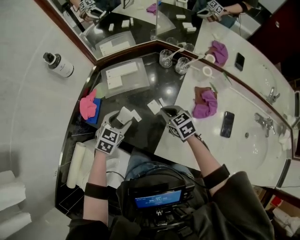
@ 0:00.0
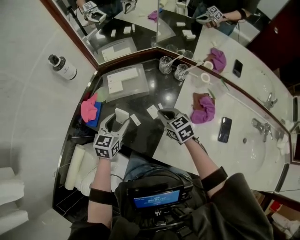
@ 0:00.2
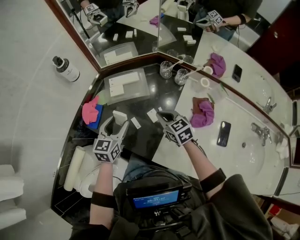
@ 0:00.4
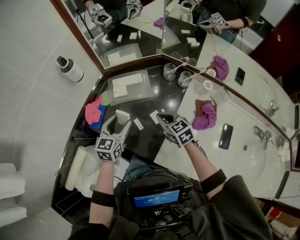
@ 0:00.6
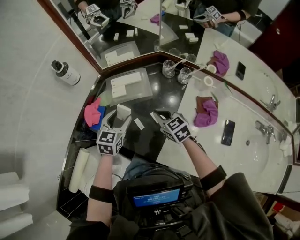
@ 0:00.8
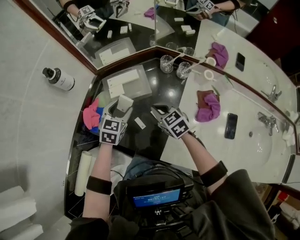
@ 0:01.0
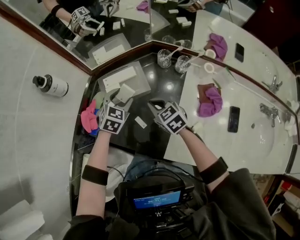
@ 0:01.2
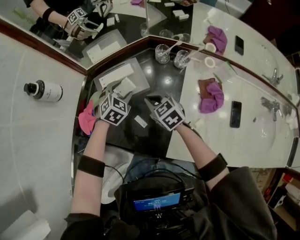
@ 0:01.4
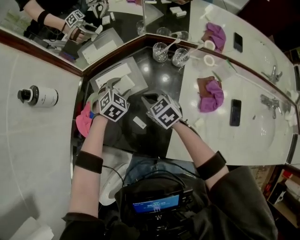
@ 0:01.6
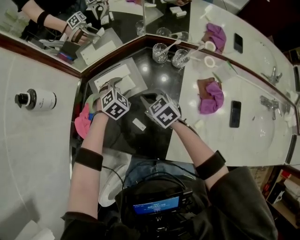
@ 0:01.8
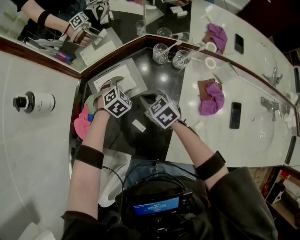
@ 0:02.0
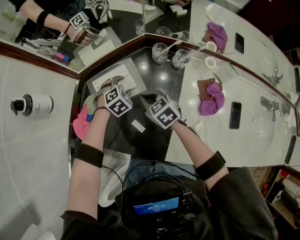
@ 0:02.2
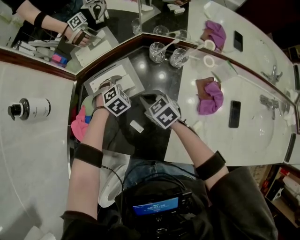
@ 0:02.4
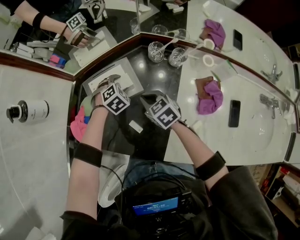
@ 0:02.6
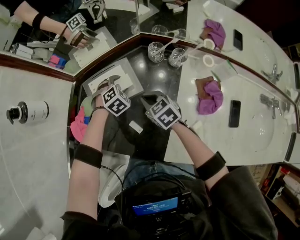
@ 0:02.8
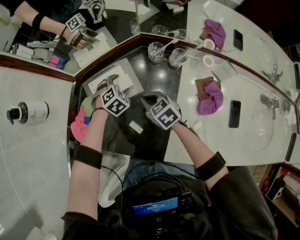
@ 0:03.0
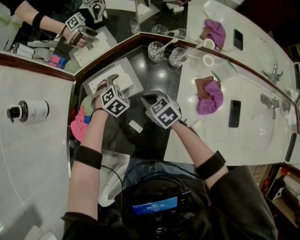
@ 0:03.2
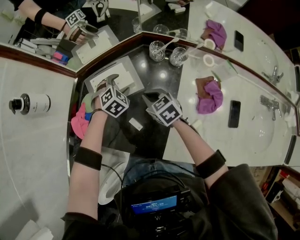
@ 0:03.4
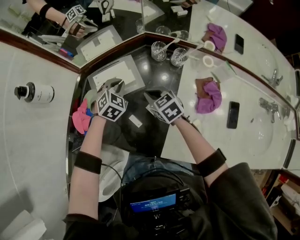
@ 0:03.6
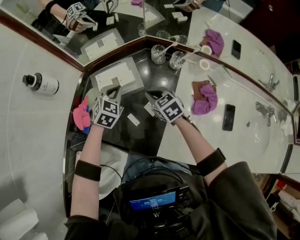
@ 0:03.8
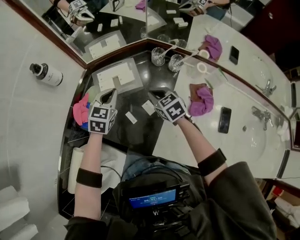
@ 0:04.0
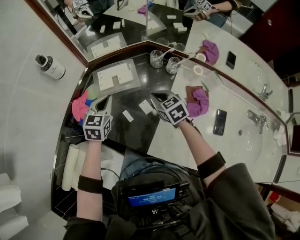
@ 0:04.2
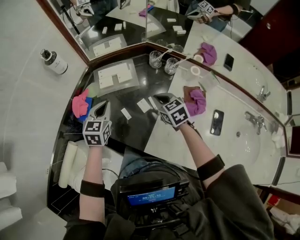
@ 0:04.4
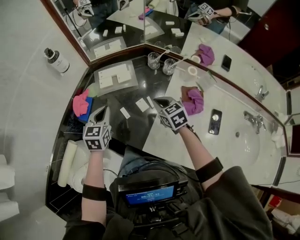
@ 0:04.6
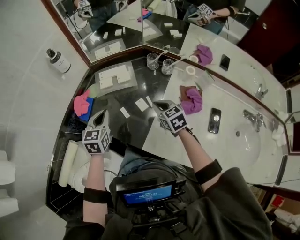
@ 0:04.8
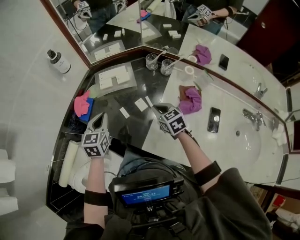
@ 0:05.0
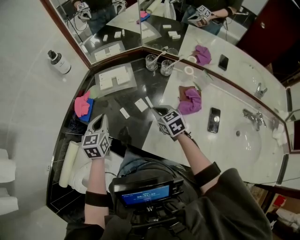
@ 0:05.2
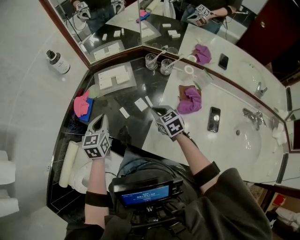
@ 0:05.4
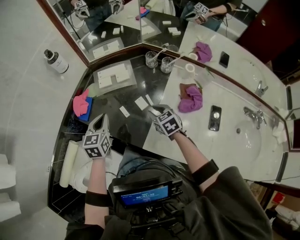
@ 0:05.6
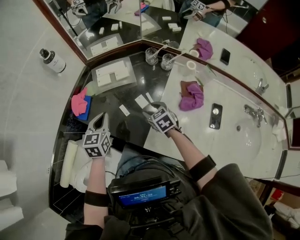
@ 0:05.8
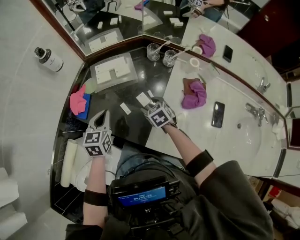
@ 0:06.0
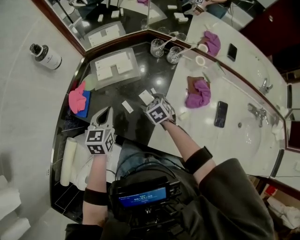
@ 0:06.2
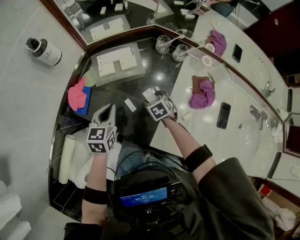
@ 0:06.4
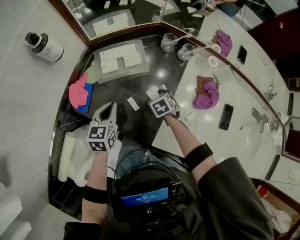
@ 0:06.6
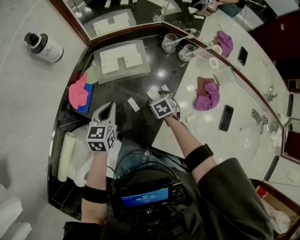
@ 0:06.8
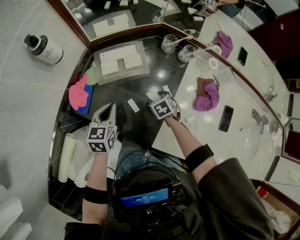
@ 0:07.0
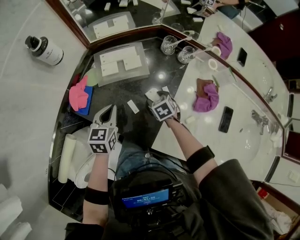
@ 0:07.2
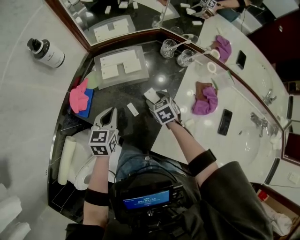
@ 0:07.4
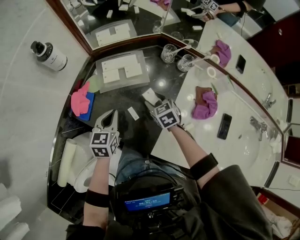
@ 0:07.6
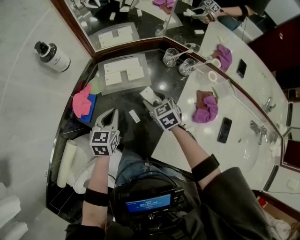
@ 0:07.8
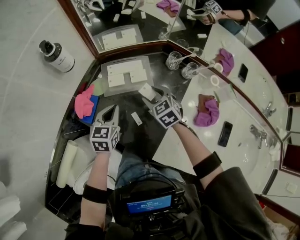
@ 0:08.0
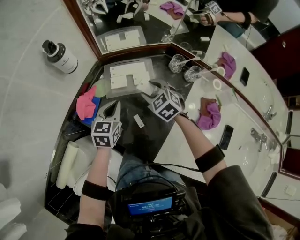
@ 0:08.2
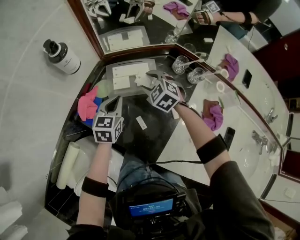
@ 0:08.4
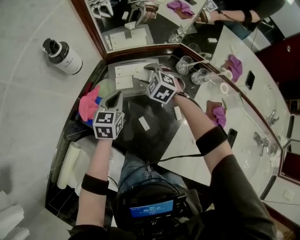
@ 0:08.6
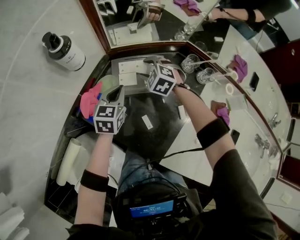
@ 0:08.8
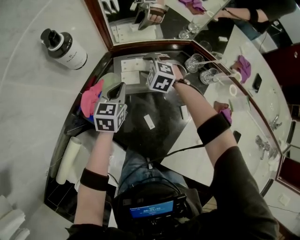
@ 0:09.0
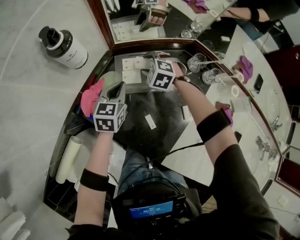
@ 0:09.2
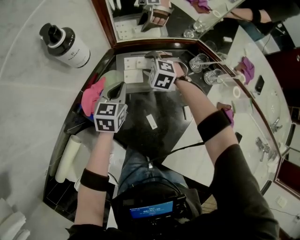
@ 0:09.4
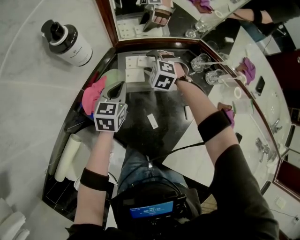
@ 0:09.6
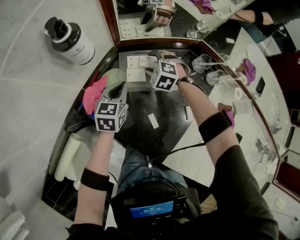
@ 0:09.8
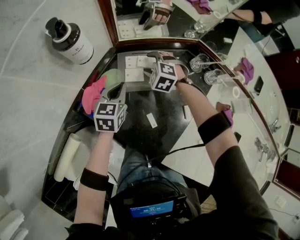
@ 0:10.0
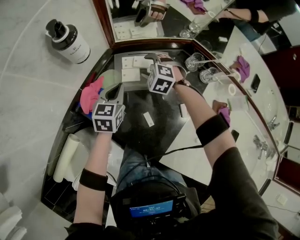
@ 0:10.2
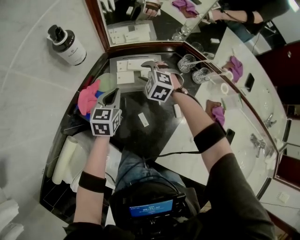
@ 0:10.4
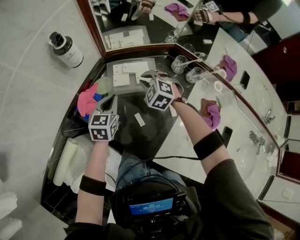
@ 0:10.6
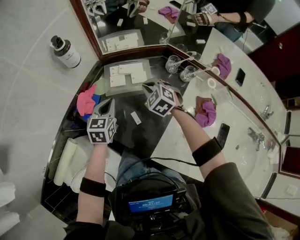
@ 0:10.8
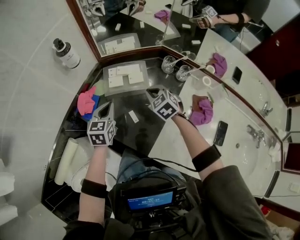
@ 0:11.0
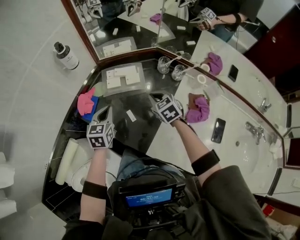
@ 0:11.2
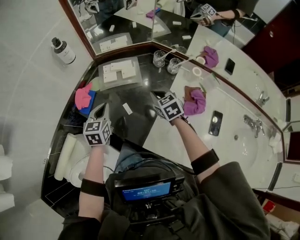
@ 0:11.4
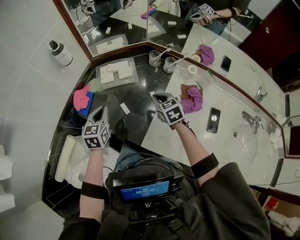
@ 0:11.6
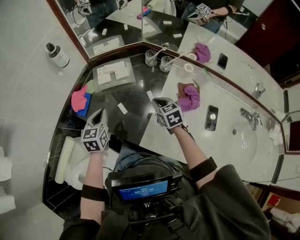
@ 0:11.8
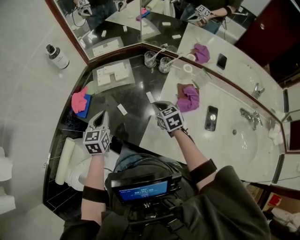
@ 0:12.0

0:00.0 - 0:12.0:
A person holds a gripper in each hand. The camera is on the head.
0:00.0 - 0:01.6: The right gripper travels forward and to the left by some 15 cm, while the left gripper is displaced forward by roughly 20 cm, and rotates roughly 30 degrees.
0:01.6 - 0:03.0: The left gripper is displaced downward by approximately 5 cm.
0:03.0 - 0:04.4: The left gripper is displaced upward, backward and to the left by roughly 25 cm, rotates around the line of its fingers by approximately 50 degrees, counterclockwise from behind, and closes its fingers. The right gripper travels backward, upward and to the right by approximately 15 cm.
0:04.4 - 0:06.0: The right gripper is displaced downward by approximately 10 cm, and opens, while the left gripper travels backward by some 5 cm.
0:06.0 - 0:07.6: The right gripper moves forward, about 5 cm, and travels downward and back again, about 10 cm each way; the left gripper goes approximately 5 cm downward.
0:07.6 - 0:09.0: The left gripper moves forward, approximately 15 cm. The right gripper heads forward and to the left, covering about 25 cm, and twists some 50 degrees counterclockwise, seen from behind.
0:09.0 - 0:10.4: The right gripper shifts by some 5 cm.
0:10.4 - 0:12.0: The right gripper moves backward and to the right, roughly 35 cm, rolls clockwise, seen from behind, by some 60 degrees, and closes its fingers, while the left gripper heads backward, covering roughly 20 cm.

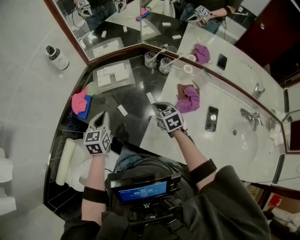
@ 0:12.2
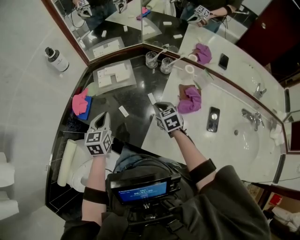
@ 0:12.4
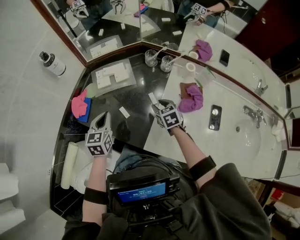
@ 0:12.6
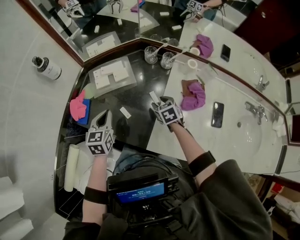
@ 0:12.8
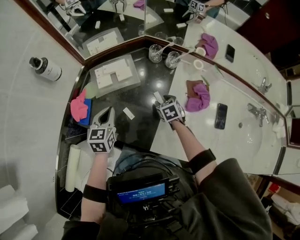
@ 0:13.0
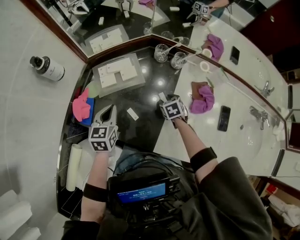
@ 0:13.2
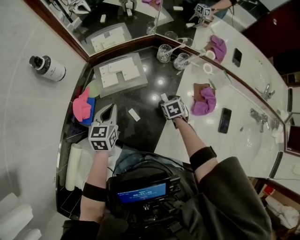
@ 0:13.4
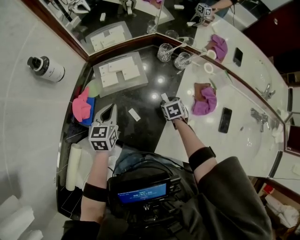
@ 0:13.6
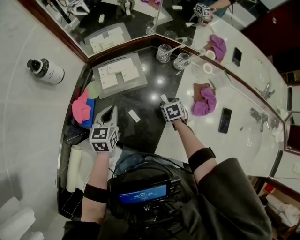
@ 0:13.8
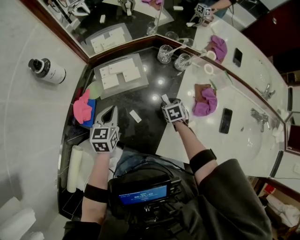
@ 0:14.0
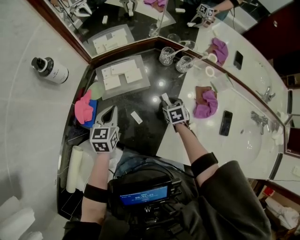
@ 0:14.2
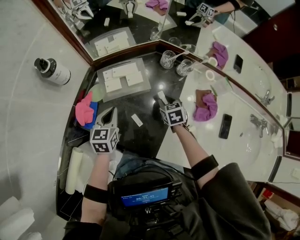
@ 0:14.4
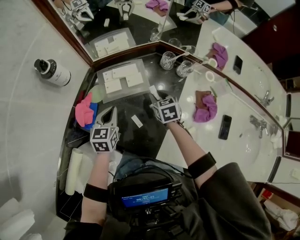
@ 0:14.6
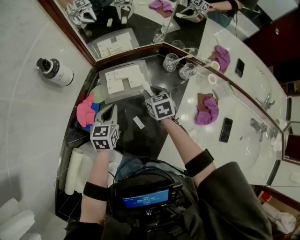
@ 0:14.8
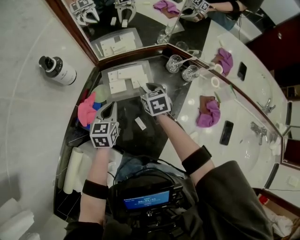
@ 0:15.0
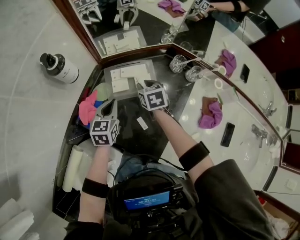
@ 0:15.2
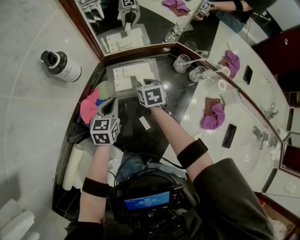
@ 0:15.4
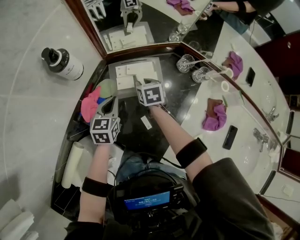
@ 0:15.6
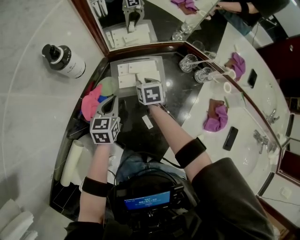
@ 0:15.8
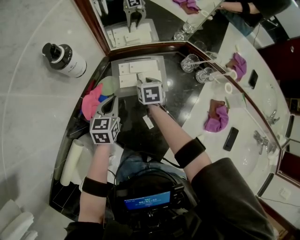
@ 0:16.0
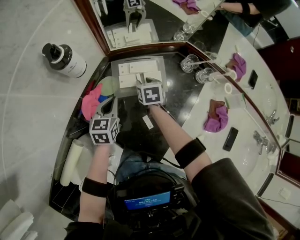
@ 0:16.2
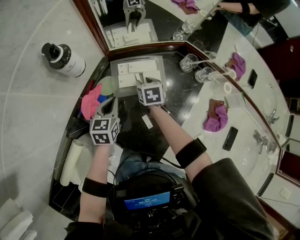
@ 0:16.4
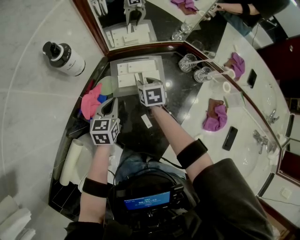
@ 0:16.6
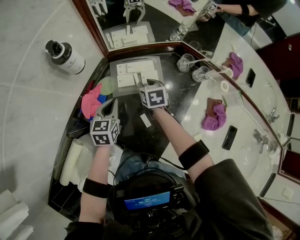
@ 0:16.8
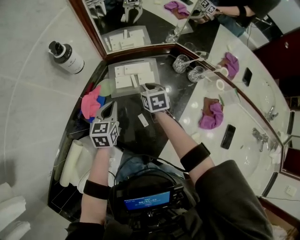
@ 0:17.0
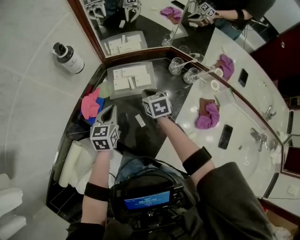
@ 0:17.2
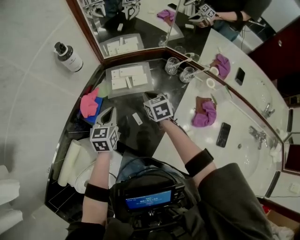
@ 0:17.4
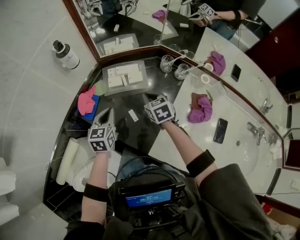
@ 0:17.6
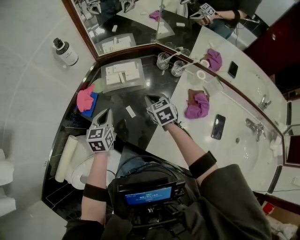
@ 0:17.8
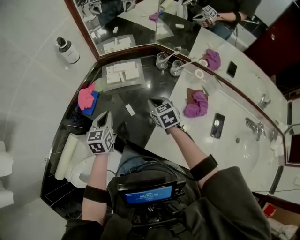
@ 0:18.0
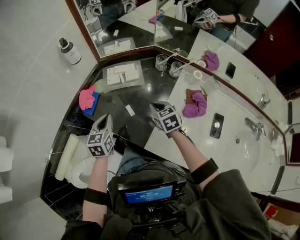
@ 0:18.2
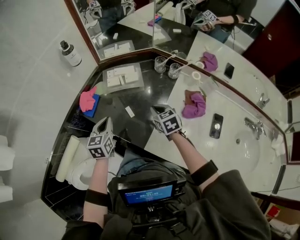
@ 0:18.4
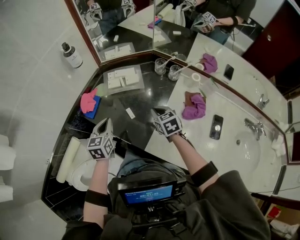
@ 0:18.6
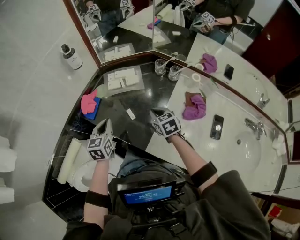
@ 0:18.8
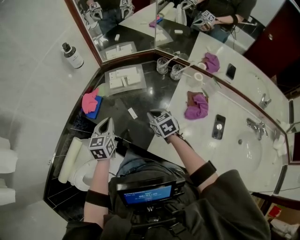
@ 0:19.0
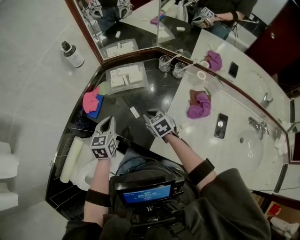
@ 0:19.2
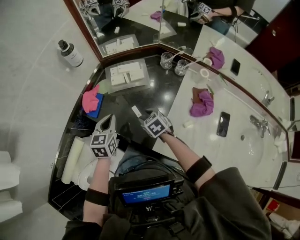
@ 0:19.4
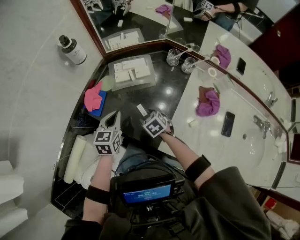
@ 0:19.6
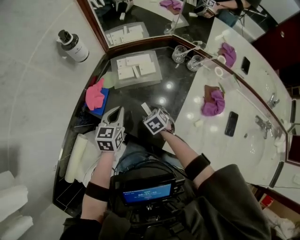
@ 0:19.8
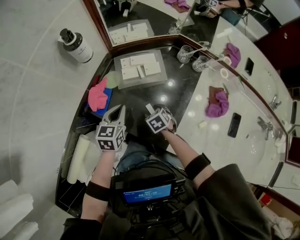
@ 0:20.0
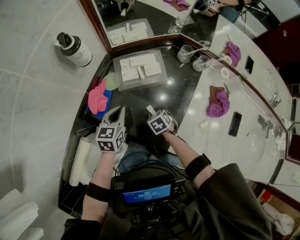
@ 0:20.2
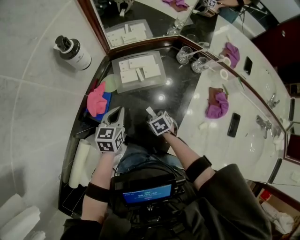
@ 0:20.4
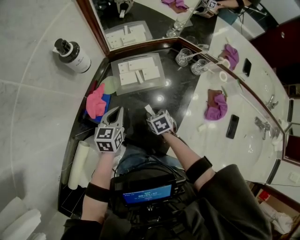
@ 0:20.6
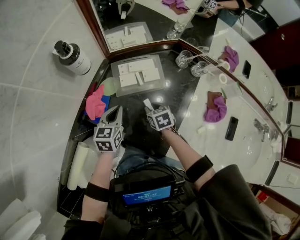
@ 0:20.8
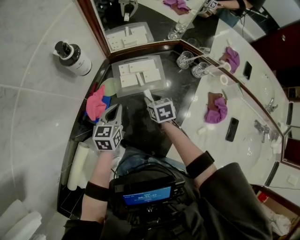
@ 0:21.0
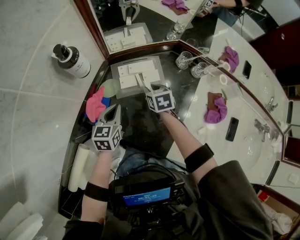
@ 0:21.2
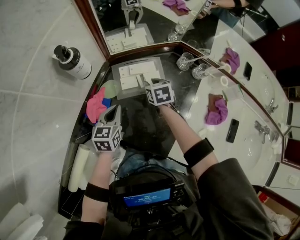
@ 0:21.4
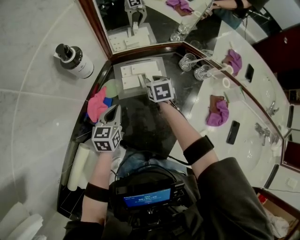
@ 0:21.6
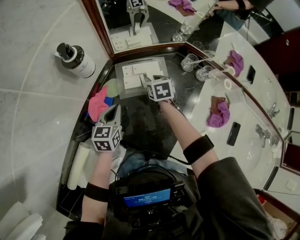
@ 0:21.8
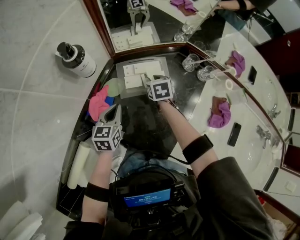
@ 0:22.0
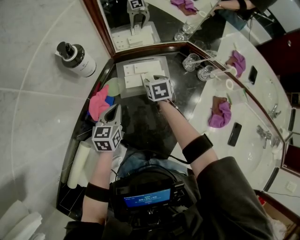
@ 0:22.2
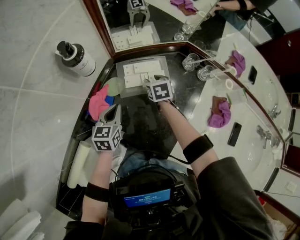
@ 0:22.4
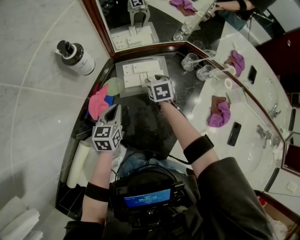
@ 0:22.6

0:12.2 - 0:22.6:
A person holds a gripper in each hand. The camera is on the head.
0:12.2 - 0:13.6: The left gripper travels forward and downward by roughly 15 cm. Meanwhile the right gripper heads downward and forward, covering some 20 cm, and changes its angle by some 30 degrees.
0:13.6 - 0:15.2: The right gripper goes about 25 cm to the left, forward and upward. Meanwhile the left gripper goes some 5 cm forward.
0:15.2 - 0:16.6: The right gripper ends up about 5 cm from where it was.
0:16.6 - 0:18.2: The right gripper shifts about 30 cm backward, upward and to the right, and closes its fingers, while the left gripper heads backward and upward, covering some 20 cm.
0:18.2 - 0:19.6: The left gripper ends up some 5 cm from where it was; the right gripper goes some 15 cm to the left and downward, changes its angle by about 20 degrees, and opens up.
0:19.6 - 0:21.2: The left gripper goes about 10 cm forward. The right gripper shifts about 20 cm forward, swivels approximately 20 degrees, and closes up.
0:21.2 - 0:22.6: The right gripper moves roughly 5 cm.

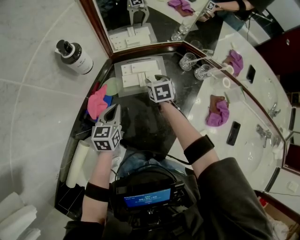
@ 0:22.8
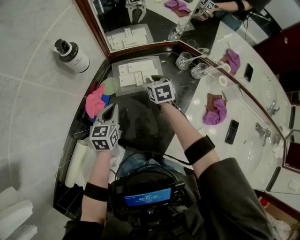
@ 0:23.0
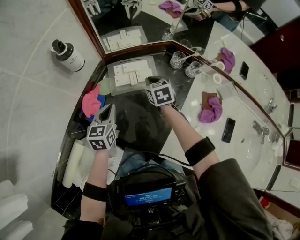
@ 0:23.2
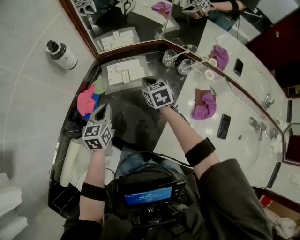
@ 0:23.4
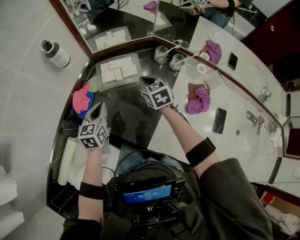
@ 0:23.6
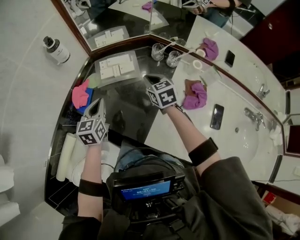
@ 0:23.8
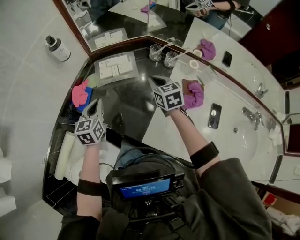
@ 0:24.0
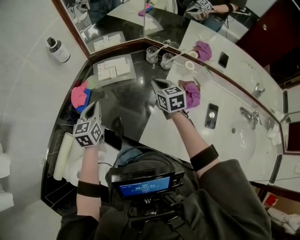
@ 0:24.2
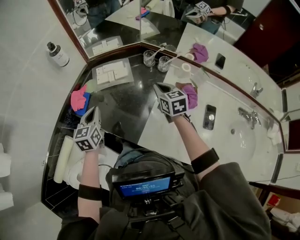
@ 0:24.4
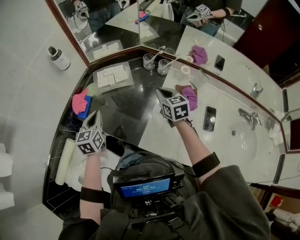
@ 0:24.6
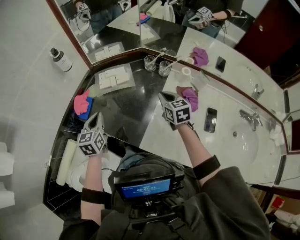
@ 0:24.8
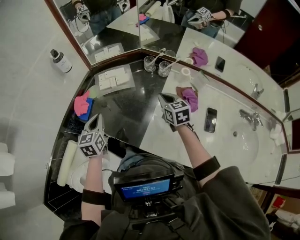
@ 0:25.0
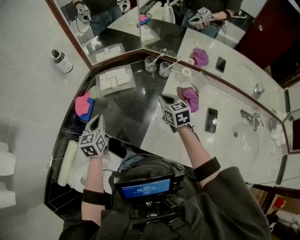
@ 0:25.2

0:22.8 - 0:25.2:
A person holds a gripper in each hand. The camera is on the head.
0:22.8 - 0:24.0: The left gripper heads backward, upward and to the right, covering roughly 15 cm. The right gripper moves backward, upward and to the right, about 25 cm, swivels some 20 degrees, and closes its fingers.
0:24.0 - 0:25.2: The left gripper travels backward by approximately 5 cm. The right gripper is displaced backward and to the right by about 10 cm.
